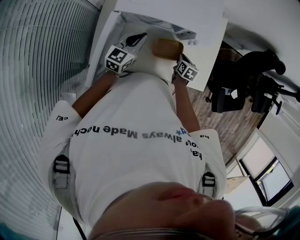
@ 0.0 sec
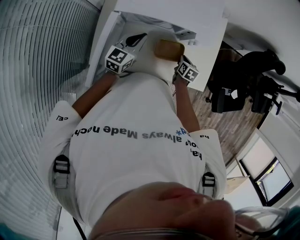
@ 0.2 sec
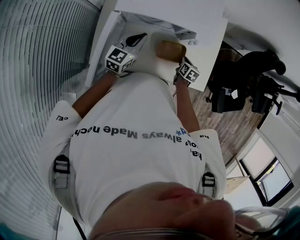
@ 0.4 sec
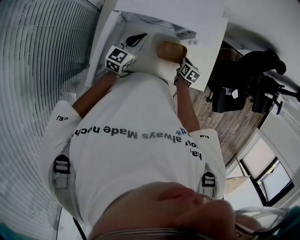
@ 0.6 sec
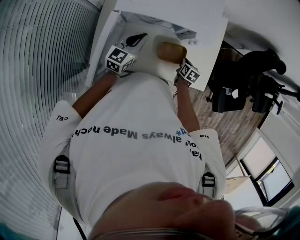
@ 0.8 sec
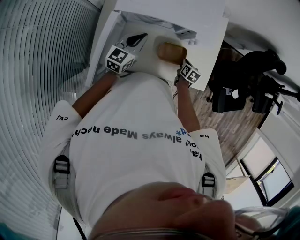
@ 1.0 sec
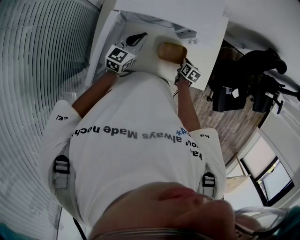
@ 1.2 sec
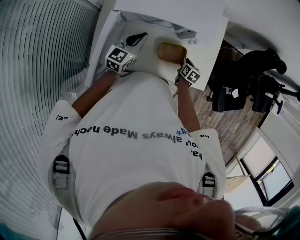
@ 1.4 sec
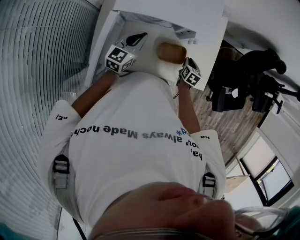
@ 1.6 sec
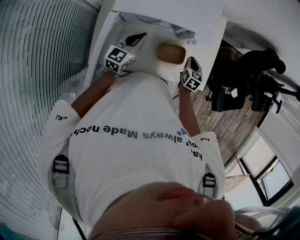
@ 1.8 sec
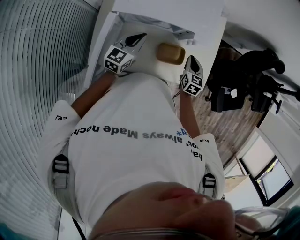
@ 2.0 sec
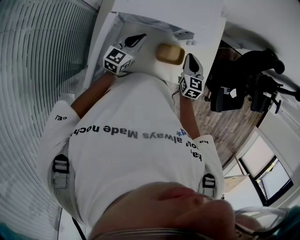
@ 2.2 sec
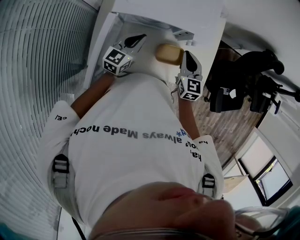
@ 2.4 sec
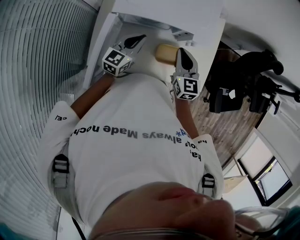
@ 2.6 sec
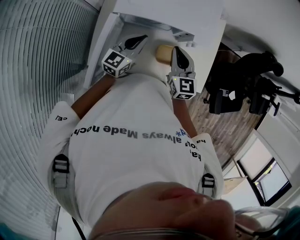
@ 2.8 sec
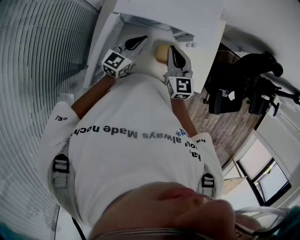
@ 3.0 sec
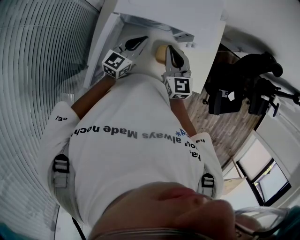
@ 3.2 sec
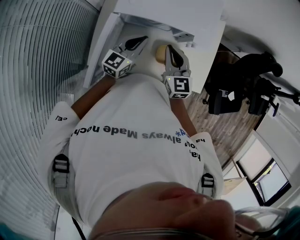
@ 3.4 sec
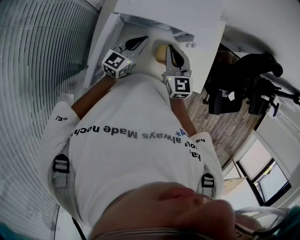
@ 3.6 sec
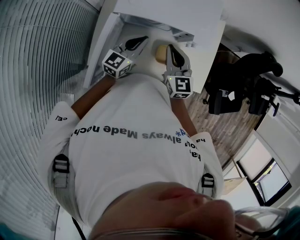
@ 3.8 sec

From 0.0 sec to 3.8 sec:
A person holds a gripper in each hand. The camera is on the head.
From 0.0 sec to 1.2 sec: The right gripper moves roughly 5 cm.
From 1.2 sec to 2.6 sec: The right gripper goes roughly 30 cm upward and to the left, and tips its fingers upward by roughly 30 degrees.
From 2.6 sec to 3.8 sec: The right gripper goes roughly 5 cm to the left.

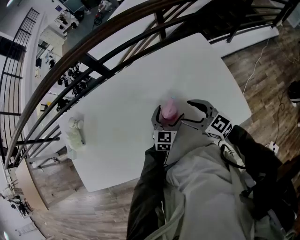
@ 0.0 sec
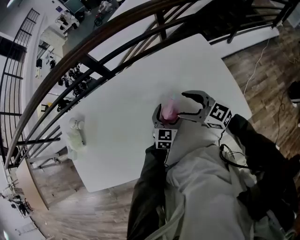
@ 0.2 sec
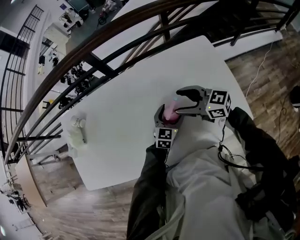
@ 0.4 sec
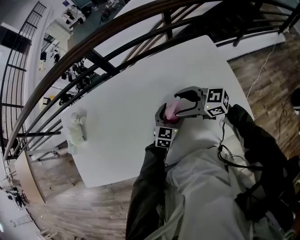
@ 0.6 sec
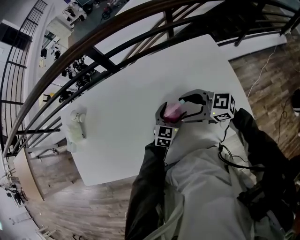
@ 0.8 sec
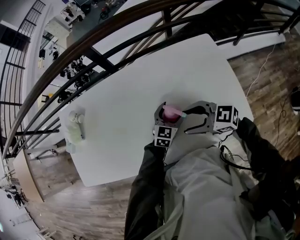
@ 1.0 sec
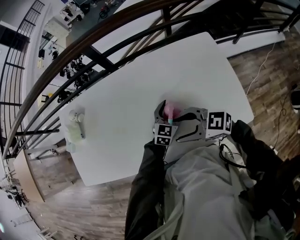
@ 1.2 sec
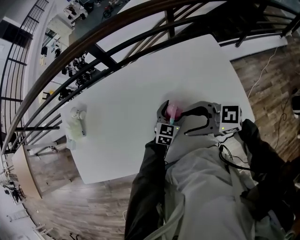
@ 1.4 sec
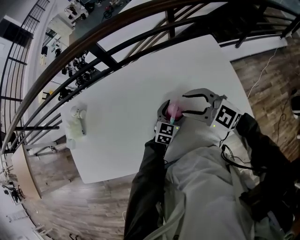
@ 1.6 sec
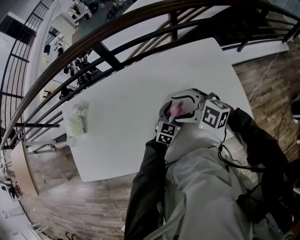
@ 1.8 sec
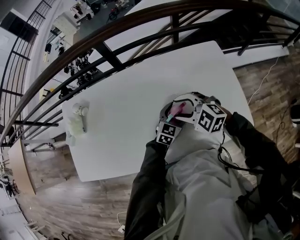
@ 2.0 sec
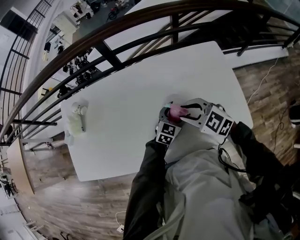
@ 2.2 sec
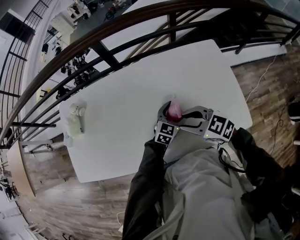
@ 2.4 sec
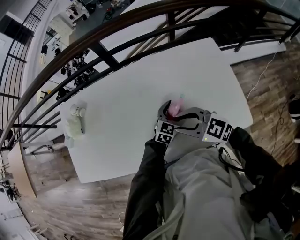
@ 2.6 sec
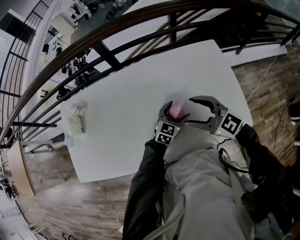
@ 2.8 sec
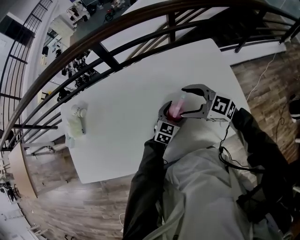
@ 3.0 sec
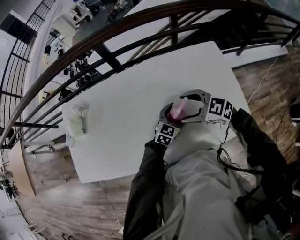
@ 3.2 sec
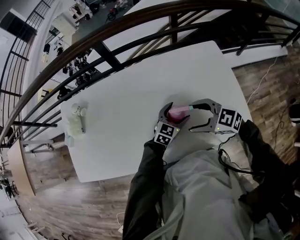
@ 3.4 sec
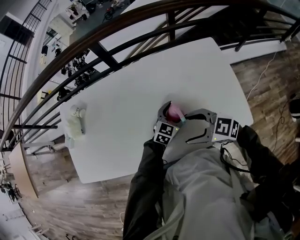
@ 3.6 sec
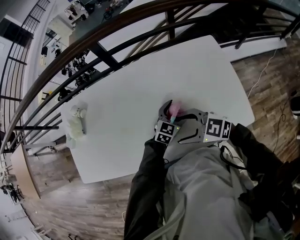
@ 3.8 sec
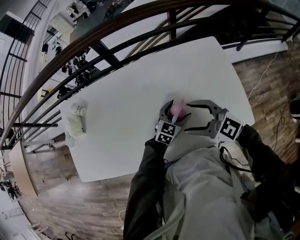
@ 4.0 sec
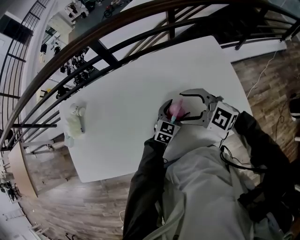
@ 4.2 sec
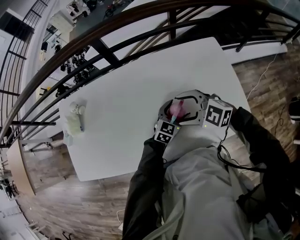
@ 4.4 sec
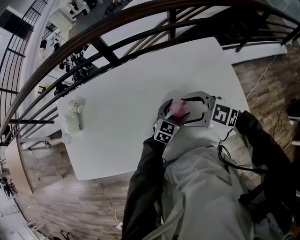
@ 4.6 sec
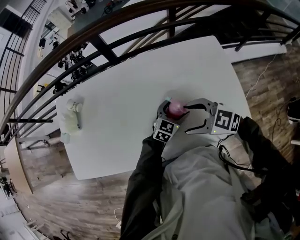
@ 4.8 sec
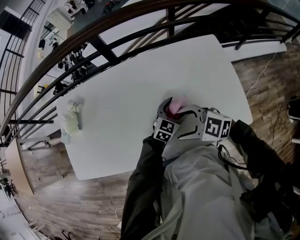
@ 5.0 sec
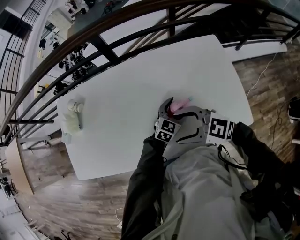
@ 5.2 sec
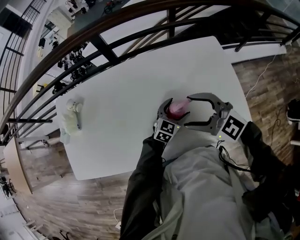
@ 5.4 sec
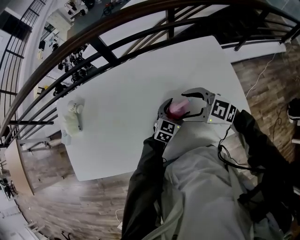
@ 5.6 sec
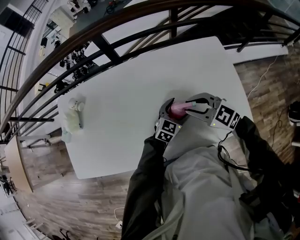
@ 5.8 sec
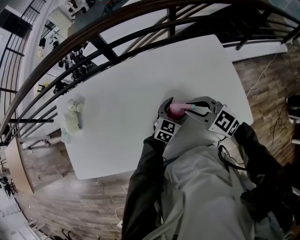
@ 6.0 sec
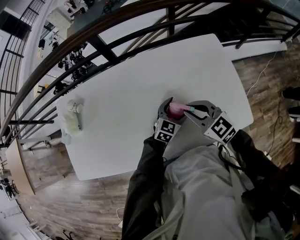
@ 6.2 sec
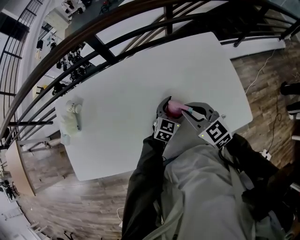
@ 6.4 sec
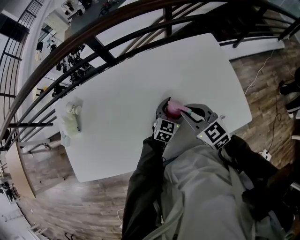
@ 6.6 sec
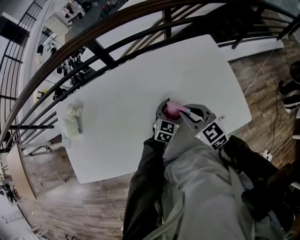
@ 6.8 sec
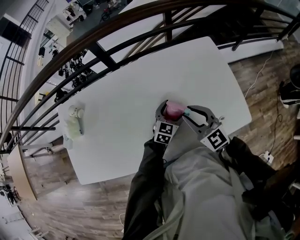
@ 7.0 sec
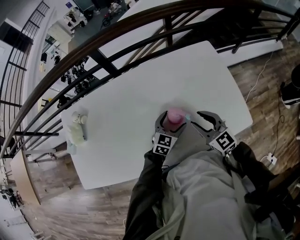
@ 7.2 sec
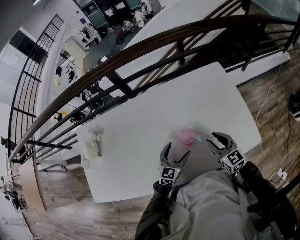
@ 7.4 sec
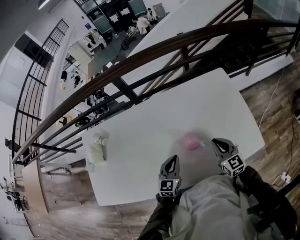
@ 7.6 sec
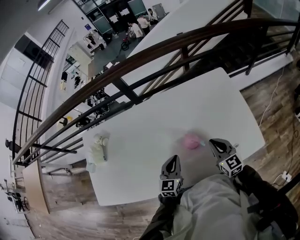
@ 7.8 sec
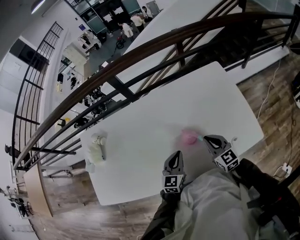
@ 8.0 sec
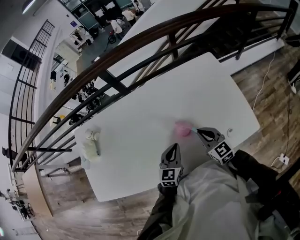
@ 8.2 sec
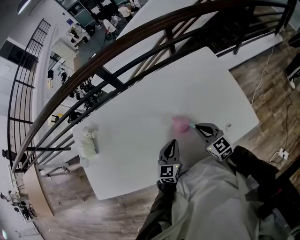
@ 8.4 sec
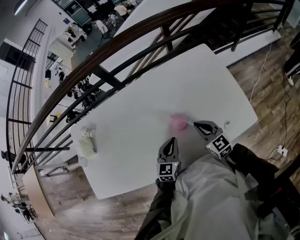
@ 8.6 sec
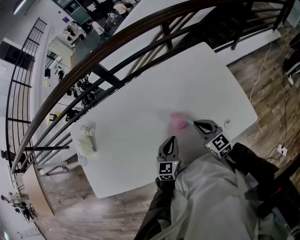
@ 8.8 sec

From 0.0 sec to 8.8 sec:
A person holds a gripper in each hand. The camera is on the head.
From 0.0 sec to 1.4 sec: The right gripper heads upward and to the left, covering roughly 10 cm, goes forward and returns, roughly 5 cm each way, and rotates approximately 30 degrees.
From 1.4 sec to 3.0 sec: The right gripper moves forward and backward over about 5 cm, changing direction 2 times, and closes, then opens again.
From 4.4 sec to 5.8 sec: The right gripper goes upward and returns, roughly 5 cm each way, and closes.
From 5.8 sec to 7.4 sec: The left gripper travels to the left and backward by approximately 10 cm, while the right gripper shifts approximately 10 cm to the right, and changes its angle by some 40 degrees.
From 7.4 sec to 8.8 sec: The left gripper closes up; the right gripper closes its fingers.

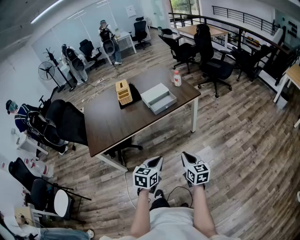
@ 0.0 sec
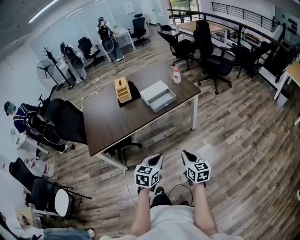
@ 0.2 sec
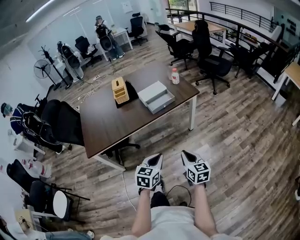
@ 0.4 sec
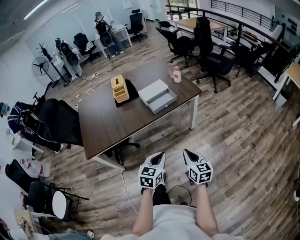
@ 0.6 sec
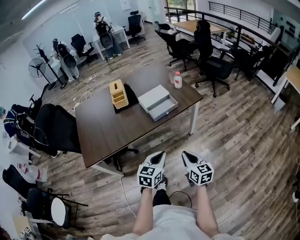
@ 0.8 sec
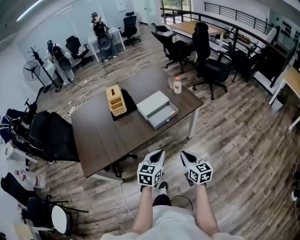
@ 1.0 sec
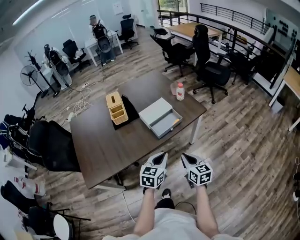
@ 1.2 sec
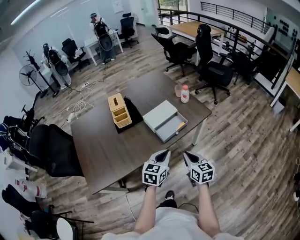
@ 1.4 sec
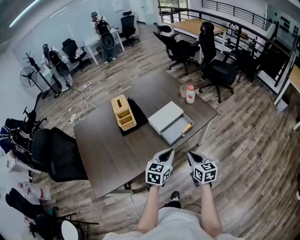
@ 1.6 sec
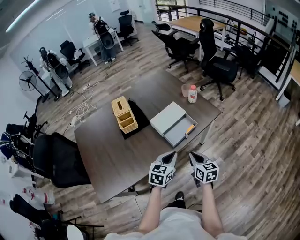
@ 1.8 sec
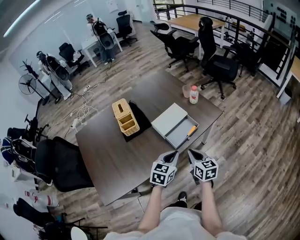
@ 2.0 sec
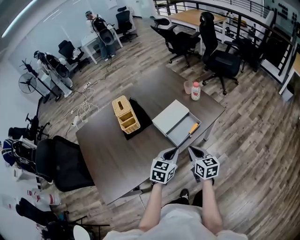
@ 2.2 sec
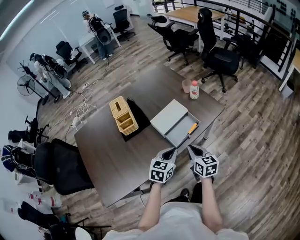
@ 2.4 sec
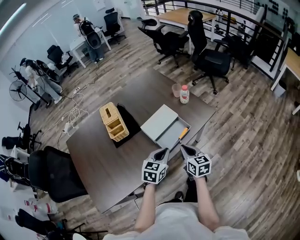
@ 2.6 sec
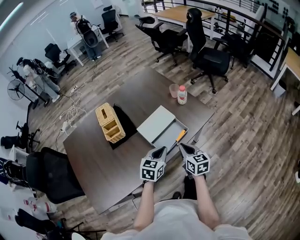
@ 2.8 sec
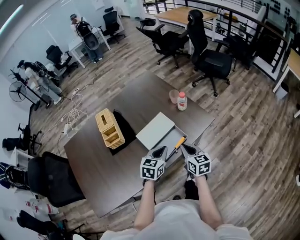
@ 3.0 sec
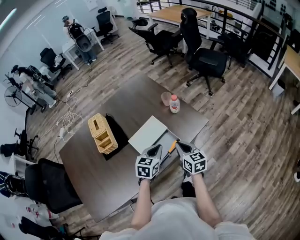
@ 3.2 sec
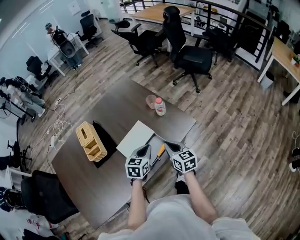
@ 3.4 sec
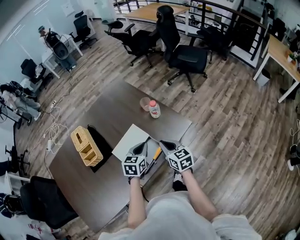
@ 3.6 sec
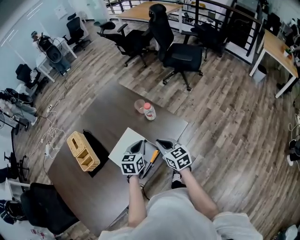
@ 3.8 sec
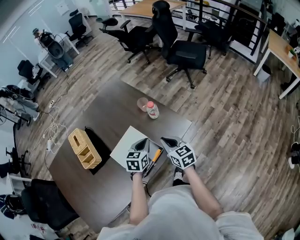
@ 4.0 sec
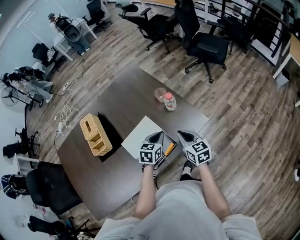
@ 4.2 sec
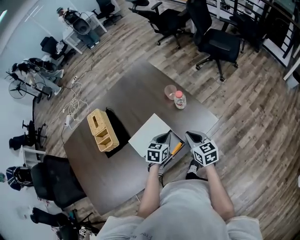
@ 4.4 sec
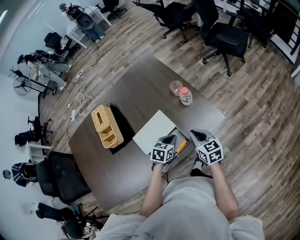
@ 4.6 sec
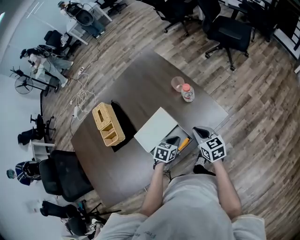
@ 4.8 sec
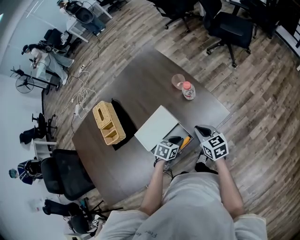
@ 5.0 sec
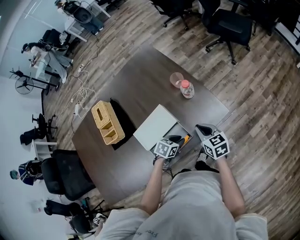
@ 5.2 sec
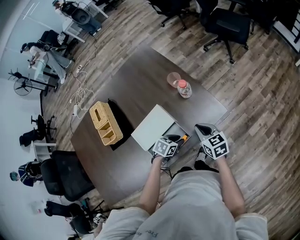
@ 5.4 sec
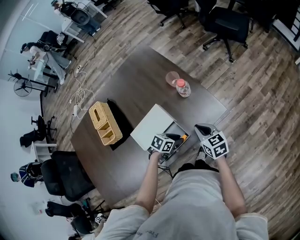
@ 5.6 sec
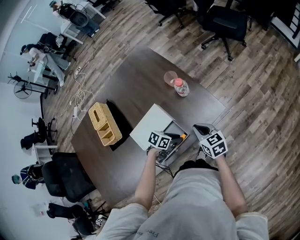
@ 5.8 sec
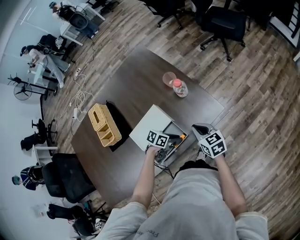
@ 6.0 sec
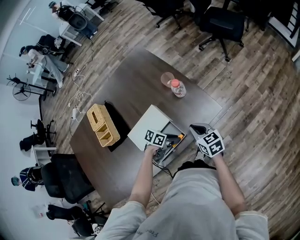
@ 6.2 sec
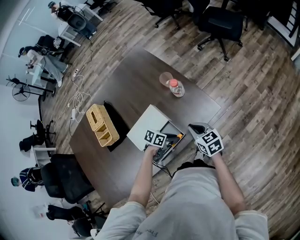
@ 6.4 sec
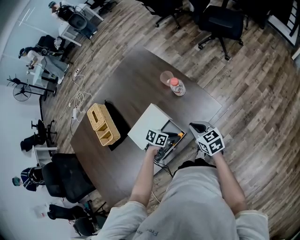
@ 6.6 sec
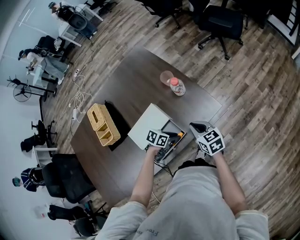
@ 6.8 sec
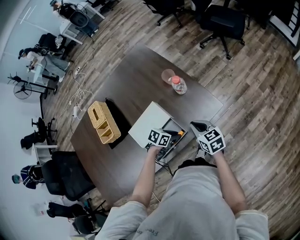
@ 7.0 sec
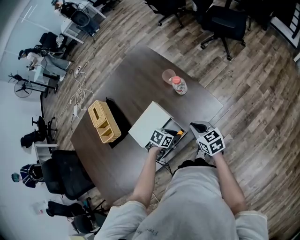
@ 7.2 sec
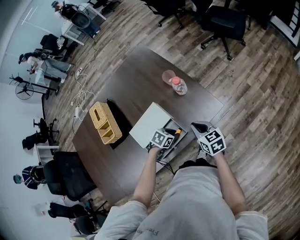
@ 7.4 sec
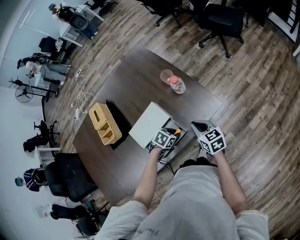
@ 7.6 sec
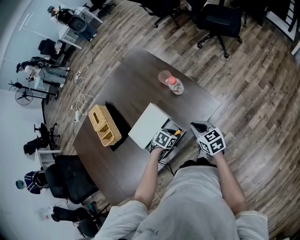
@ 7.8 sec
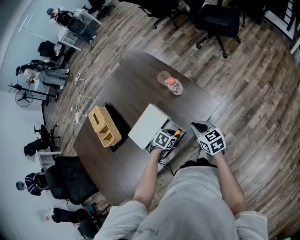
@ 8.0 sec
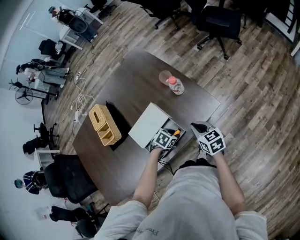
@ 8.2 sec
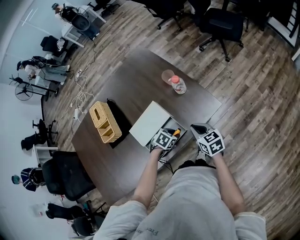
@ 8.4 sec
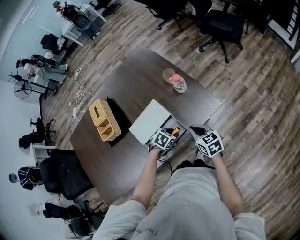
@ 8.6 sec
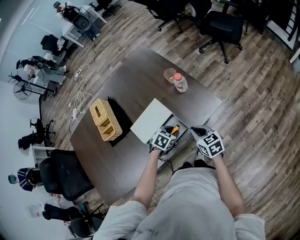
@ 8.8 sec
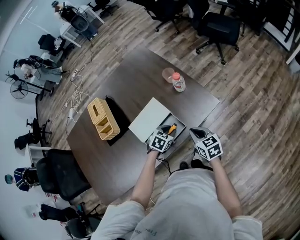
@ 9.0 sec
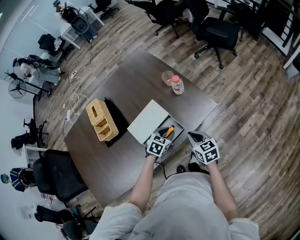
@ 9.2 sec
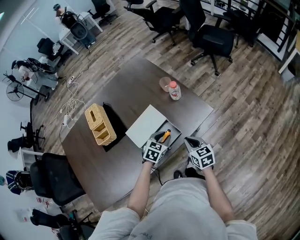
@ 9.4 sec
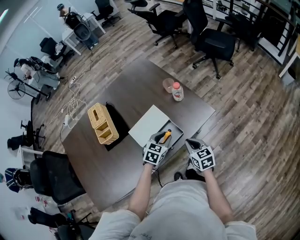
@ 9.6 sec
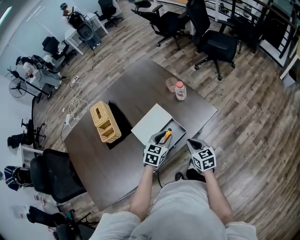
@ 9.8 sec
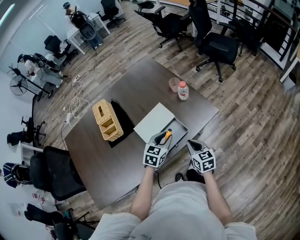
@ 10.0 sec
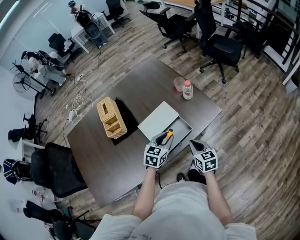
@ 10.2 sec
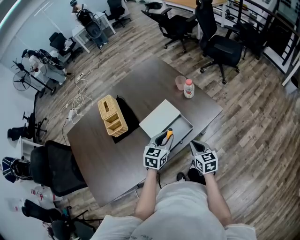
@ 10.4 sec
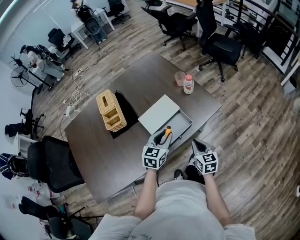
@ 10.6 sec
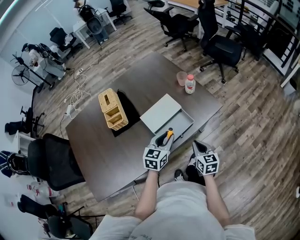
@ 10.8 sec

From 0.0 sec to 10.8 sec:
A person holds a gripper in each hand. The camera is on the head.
From 0.0 sec to 1.6 sec: The grippers both shift forward by some 35 cm.
From 1.6 sec to 3.0 sec: The grippers both shift forward by approximately 20 cm.
From 3.0 sec to 4.6 sec: The left gripper moves downward and forward, some 15 cm; the right gripper shifts some 15 cm forward, downward and to the right.
From 4.6 sec to 6.2 sec: The left gripper moves downward, about 10 cm, rotates some 40 degrees, and opens its fingers.
From 6.2 sec to 7.8 sec: The left gripper changes its angle by about 40 degrees.
From 7.8 sec to 9.2 sec: The left gripper is displaced upward by roughly 5 cm, and changes its angle by about 20 degrees. Meanwhile the right gripper shifts roughly 5 cm backward.
From 9.2 sec to 10.8 sec: The left gripper travels upward, backward and to the left by some 15 cm, and swivels some 30 degrees. The right gripper shifts some 10 cm backward.
